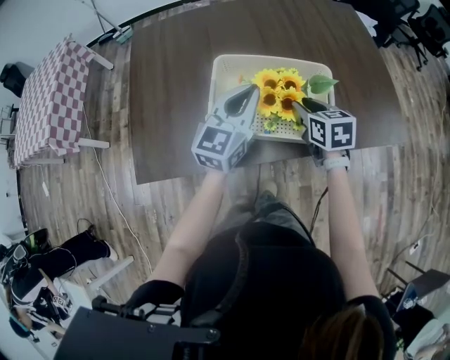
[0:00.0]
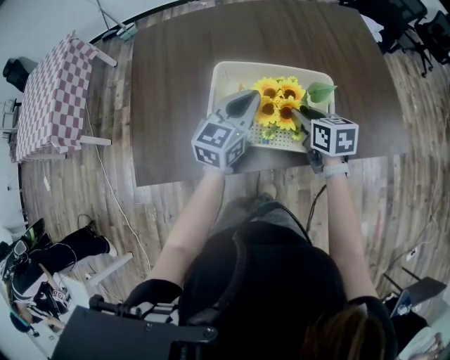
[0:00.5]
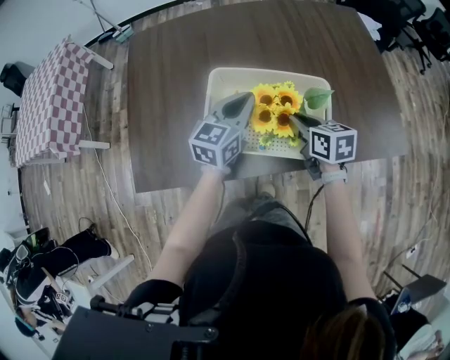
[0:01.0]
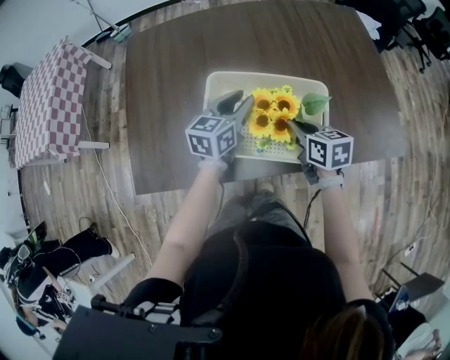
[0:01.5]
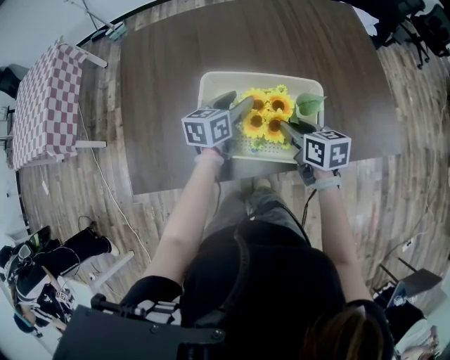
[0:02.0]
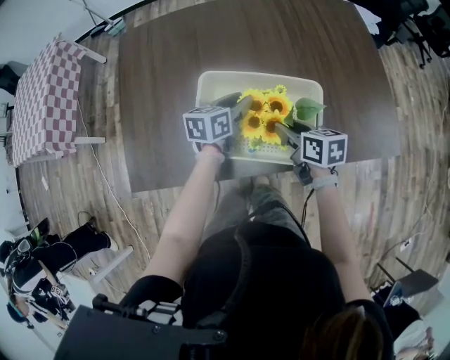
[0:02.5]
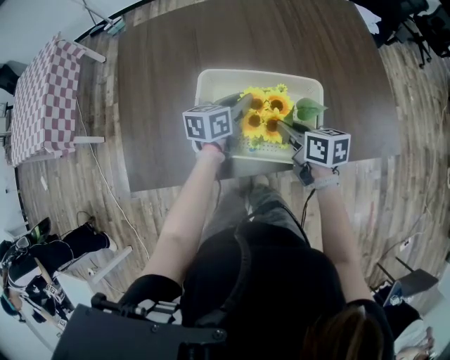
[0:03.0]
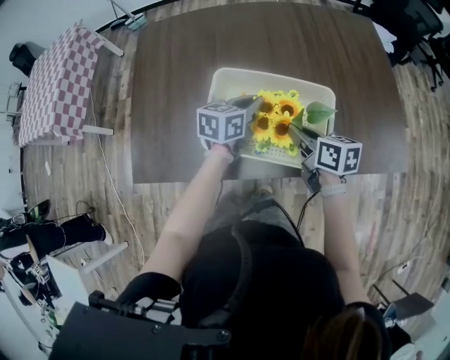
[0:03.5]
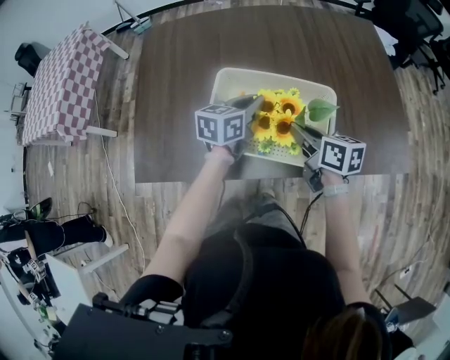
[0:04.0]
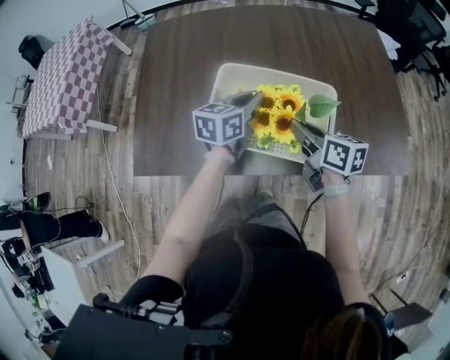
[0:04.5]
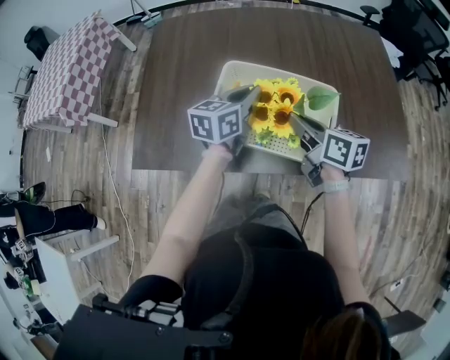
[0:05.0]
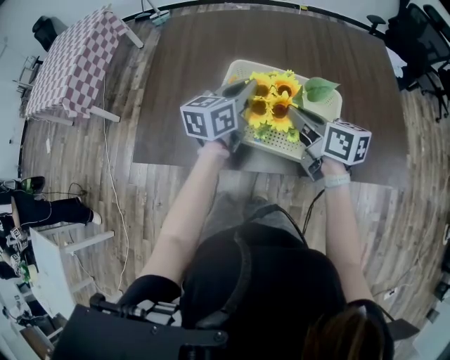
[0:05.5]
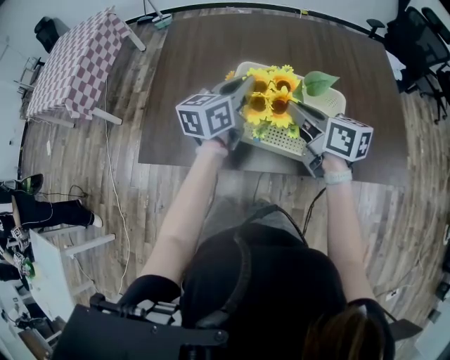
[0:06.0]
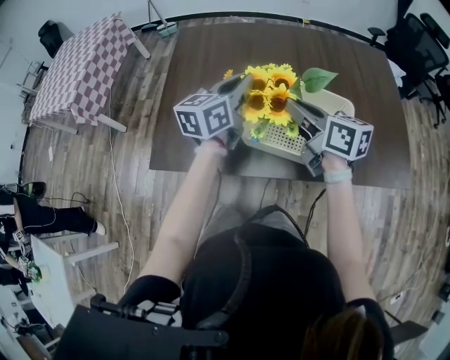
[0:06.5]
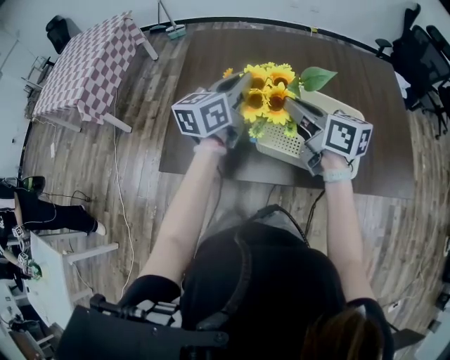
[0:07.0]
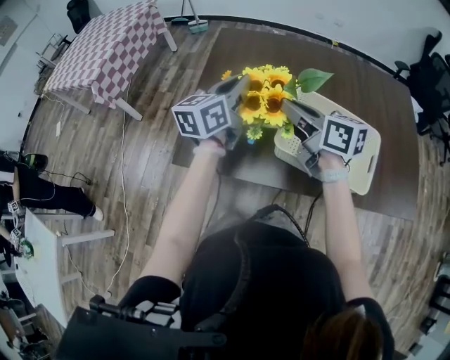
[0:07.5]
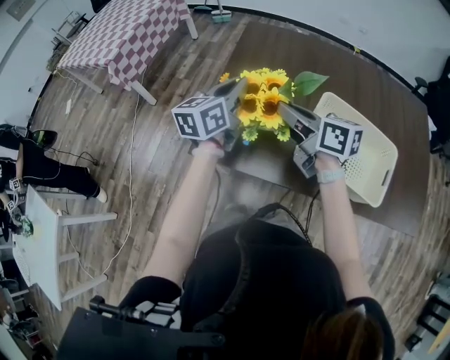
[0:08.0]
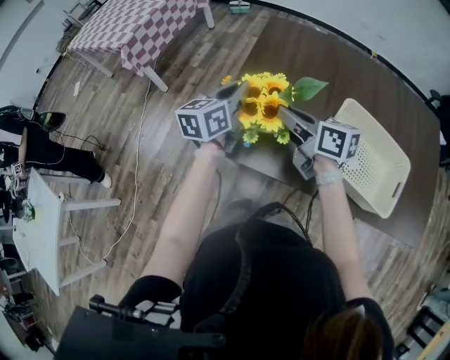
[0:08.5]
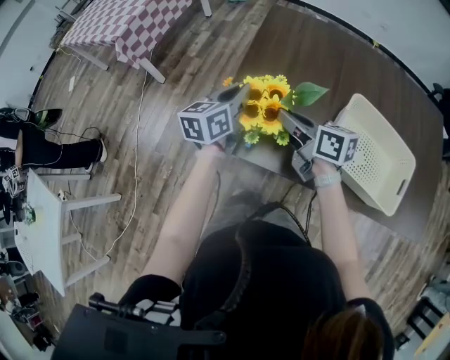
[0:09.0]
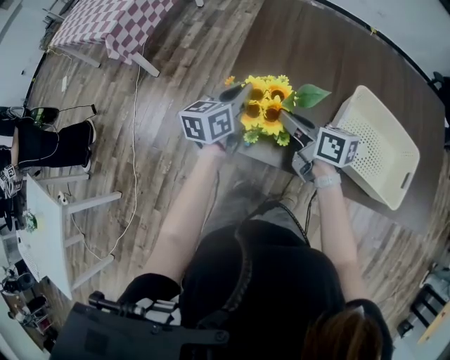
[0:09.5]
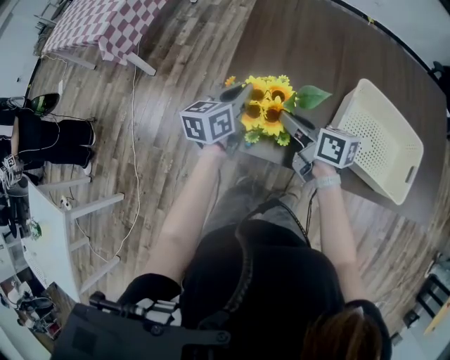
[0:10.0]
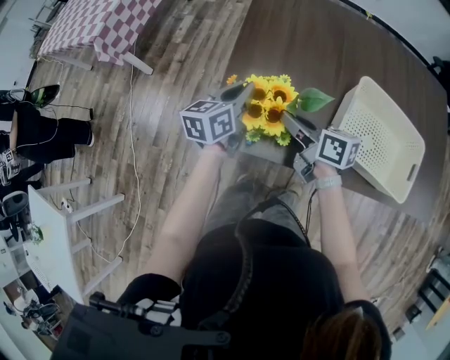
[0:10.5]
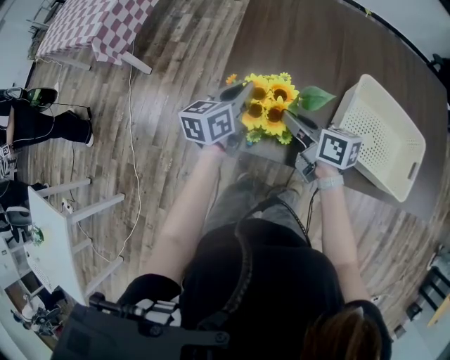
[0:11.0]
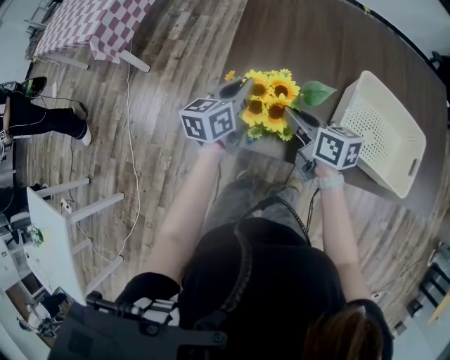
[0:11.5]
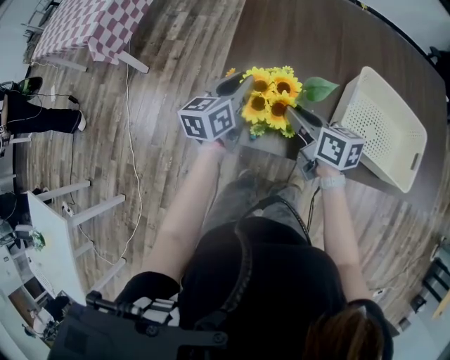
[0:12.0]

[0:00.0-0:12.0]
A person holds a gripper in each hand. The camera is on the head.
0:00.0 to 0:02.0: The right gripper closes, then opens again, while the left gripper moves downward and forward, roughly 15 cm, swivels about 40 degrees, and opens up.
0:02.0 to 0:04.0: The left gripper closes. Meanwhile the right gripper closes up.
0:04.0 to 0:06.0: The left gripper travels upward and to the left by about 10 cm. Meanwhile the right gripper travels upward by about 10 cm.
0:06.0 to 0:08.0: Both grippers travel together to the left, about 25 cm.
0:08.0 to 0:10.0: The two grippers go about 15 cm downward and to the left.
0:10.0 to 0:12.0: The left gripper opens up.

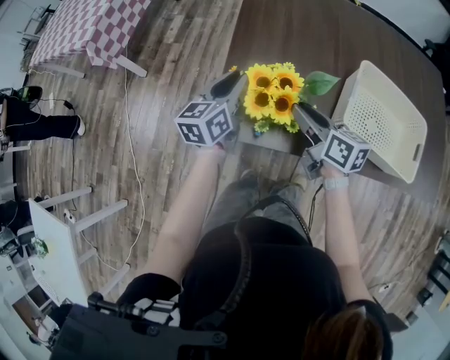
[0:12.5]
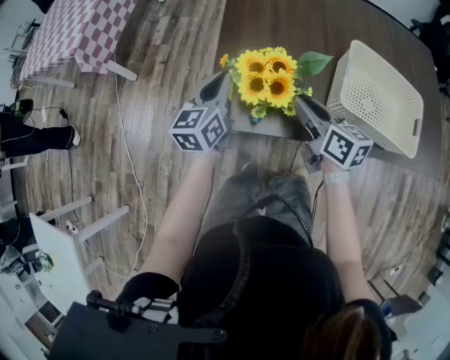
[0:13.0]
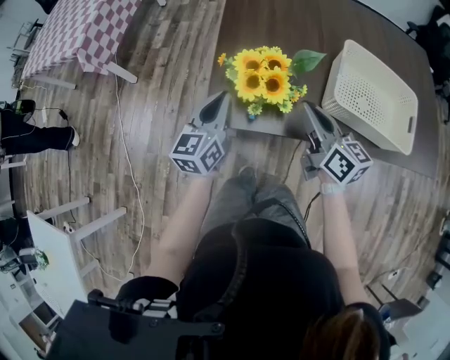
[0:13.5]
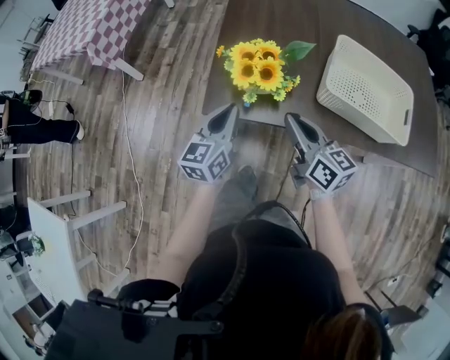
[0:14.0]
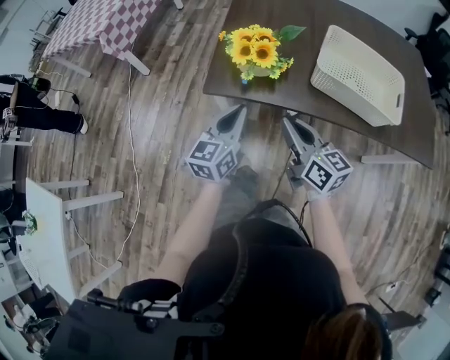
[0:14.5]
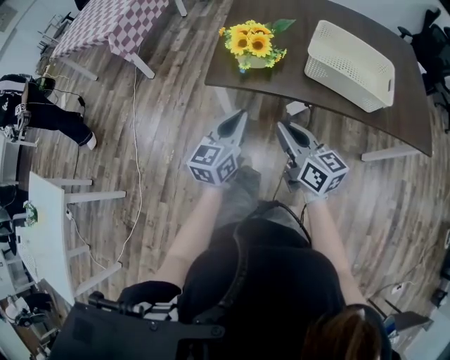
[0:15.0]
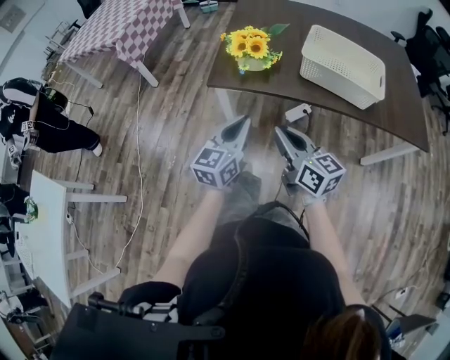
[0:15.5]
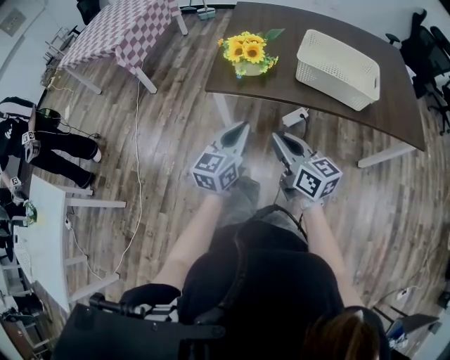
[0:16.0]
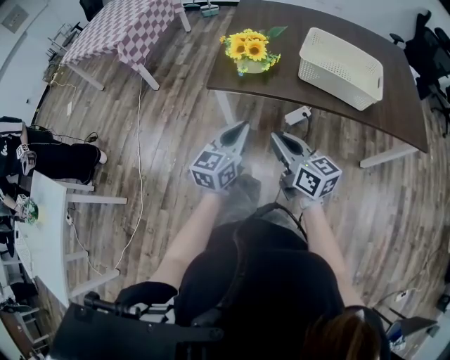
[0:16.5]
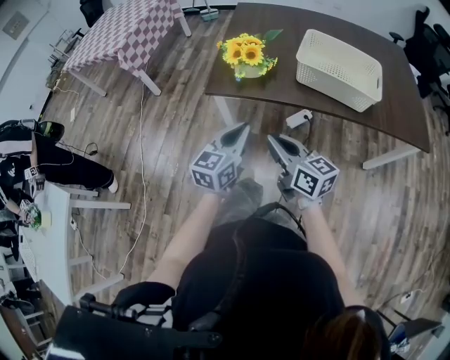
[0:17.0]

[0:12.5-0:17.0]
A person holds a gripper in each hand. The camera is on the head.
0:12.5 to 0:14.5: The grippers both shift backward by about 25 cm. The left gripper closes. Meanwhile the right gripper closes up.
0:14.5 to 0:17.0: The grippers both shift backward by roughly 15 cm.

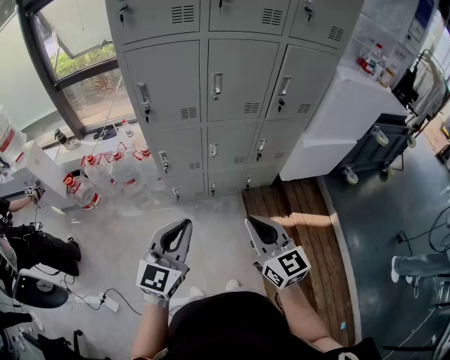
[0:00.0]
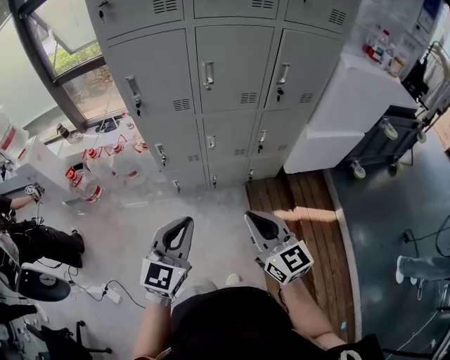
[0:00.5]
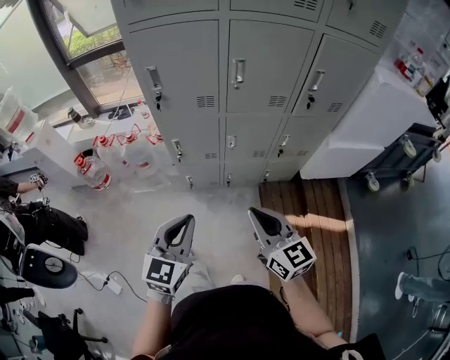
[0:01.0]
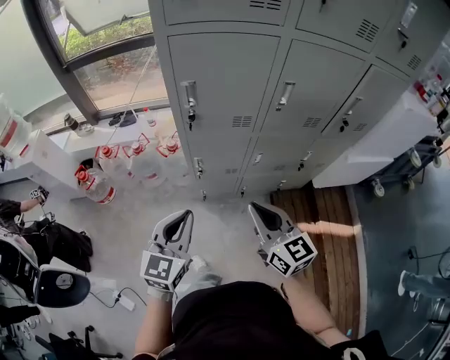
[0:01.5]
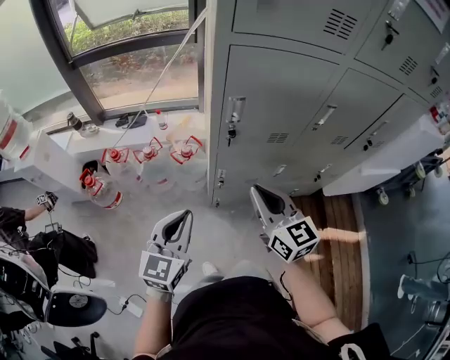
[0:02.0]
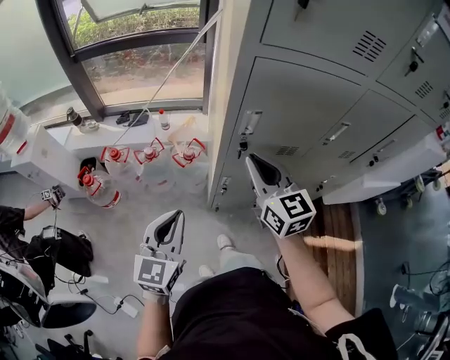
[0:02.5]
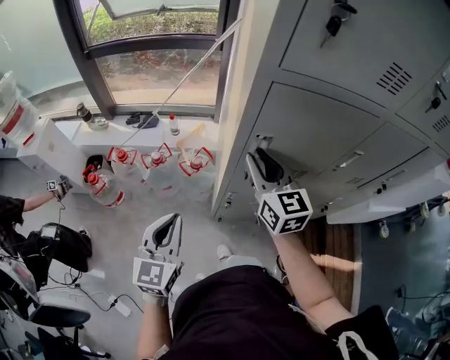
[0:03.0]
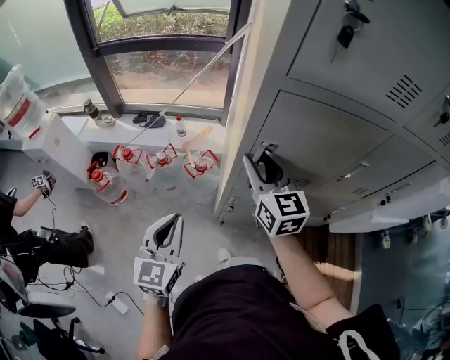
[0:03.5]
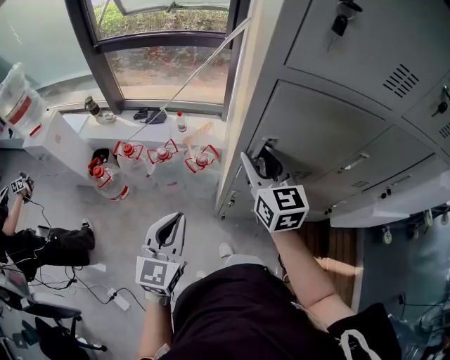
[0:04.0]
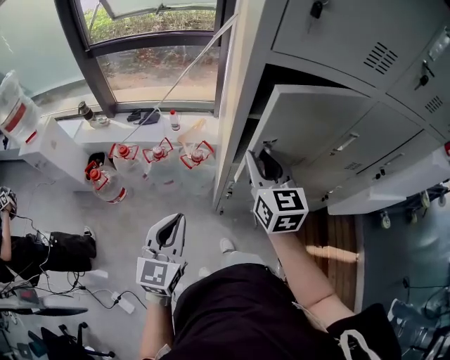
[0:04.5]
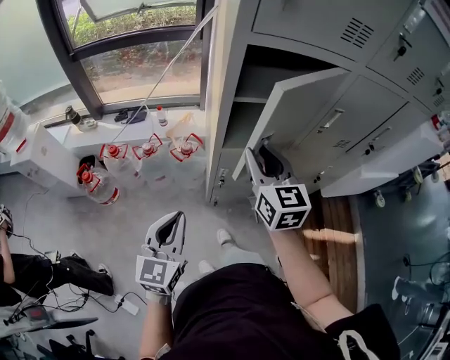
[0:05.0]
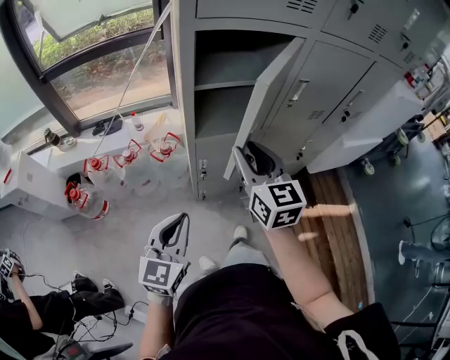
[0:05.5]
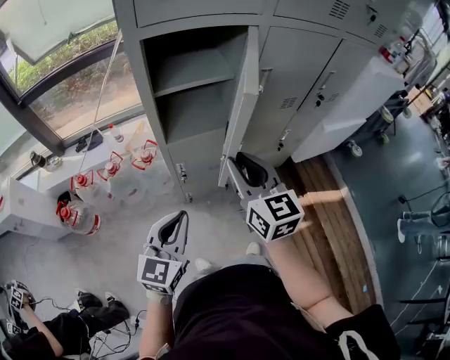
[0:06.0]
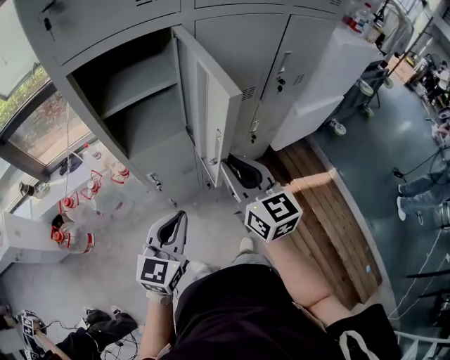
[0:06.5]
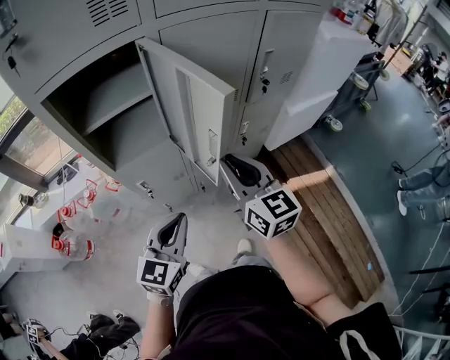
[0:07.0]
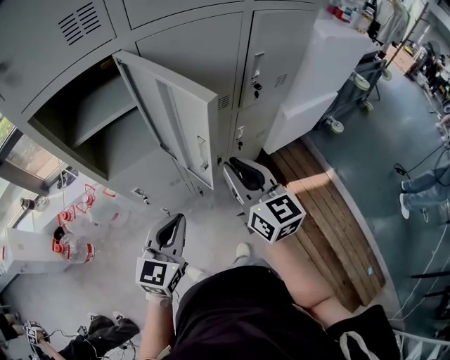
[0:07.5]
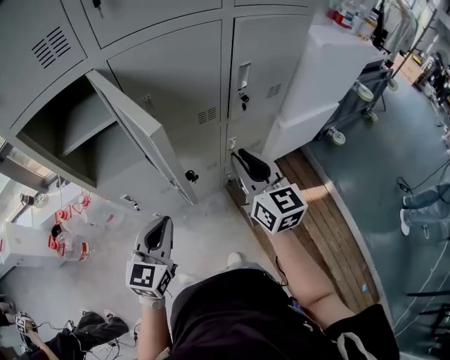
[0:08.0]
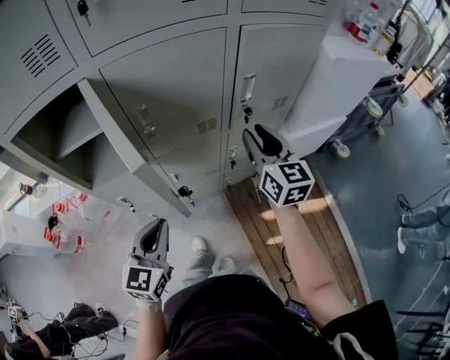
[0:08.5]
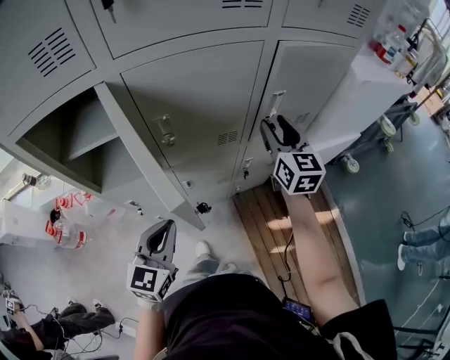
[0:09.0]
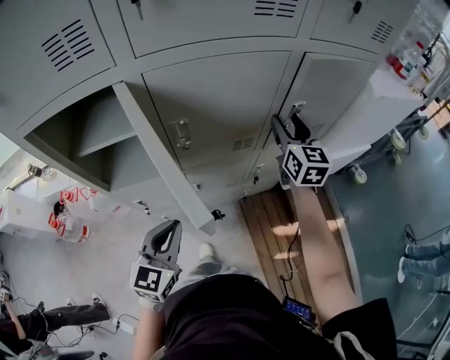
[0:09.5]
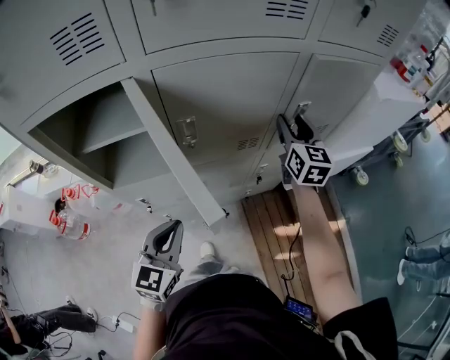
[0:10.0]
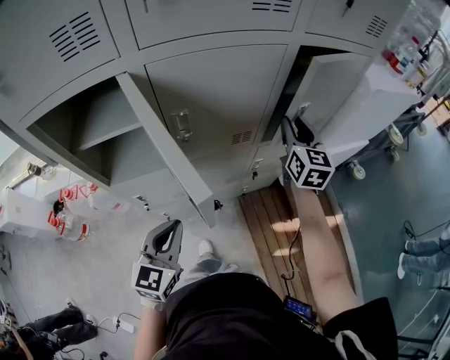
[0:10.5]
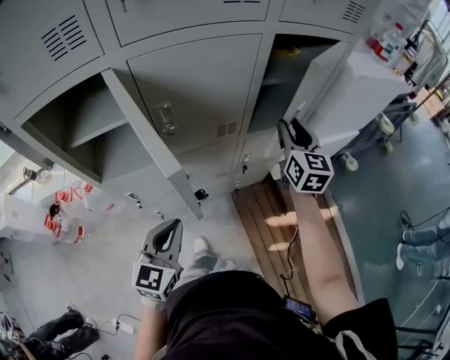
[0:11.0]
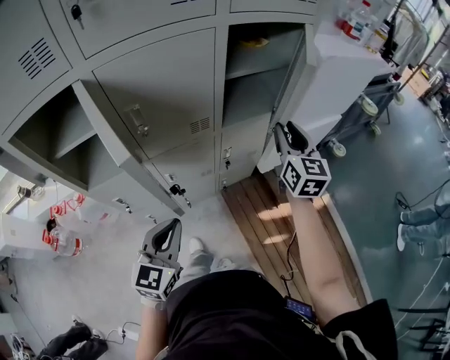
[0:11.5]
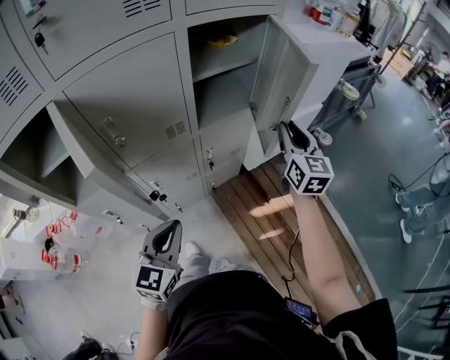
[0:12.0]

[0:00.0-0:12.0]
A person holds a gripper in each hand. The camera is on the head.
0:00.0 to 0:02.0: The left gripper goes roughly 40 cm to the left and forward. The right gripper heads forward and to the left, covering about 40 cm.
0:02.0 to 0:04.0: The left gripper is displaced forward by approximately 10 cm; the right gripper is displaced forward by roughly 20 cm, and opens up.
0:04.0 to 0:06.0: The right gripper is displaced backward and to the right by some 25 cm; the left gripper travels to the right and backward by about 15 cm, and changes its angle by roughly 30 degrees.
0:06.0 to 0:08.0: The right gripper shifts about 30 cm to the right. The left gripper heads to the right and forward, covering about 25 cm.
0:08.0 to 0:10.0: The left gripper heads forward, covering roughly 10 cm. The right gripper travels forward by some 25 cm, and opens up.
0:10.0 to 0:12.0: The left gripper heads to the right, covering about 15 cm. The right gripper shifts about 25 cm to the right and backward, and closes up.
